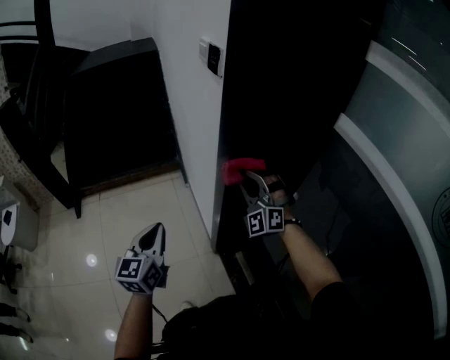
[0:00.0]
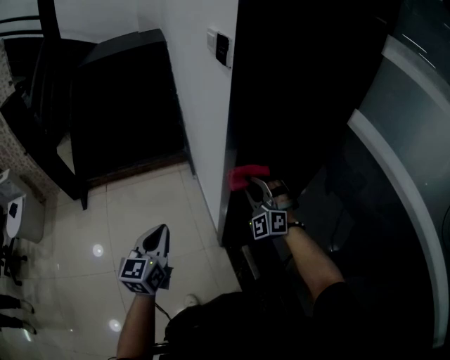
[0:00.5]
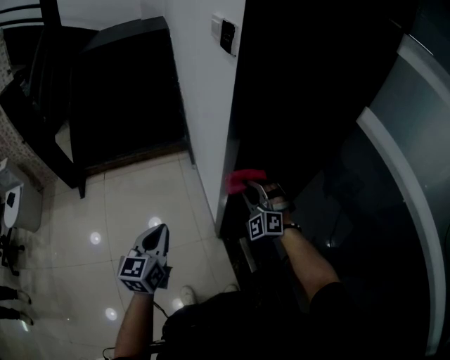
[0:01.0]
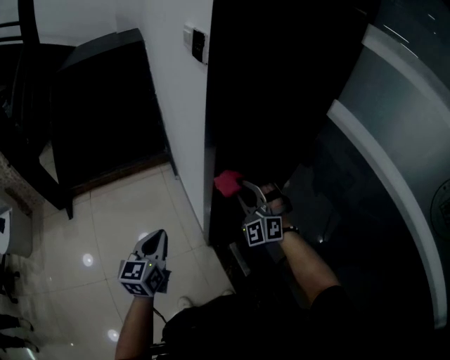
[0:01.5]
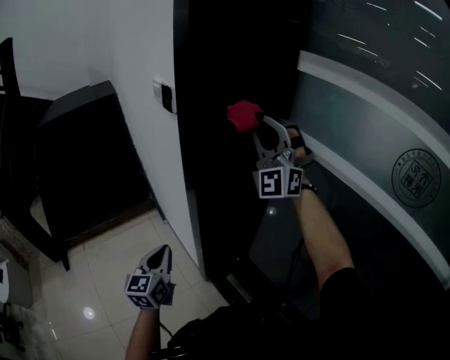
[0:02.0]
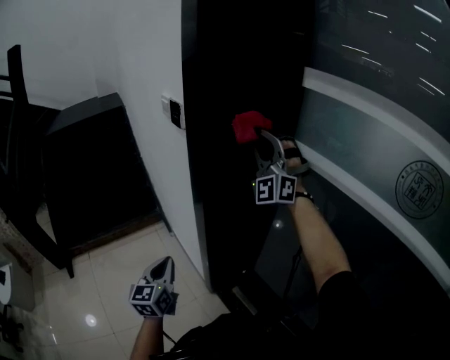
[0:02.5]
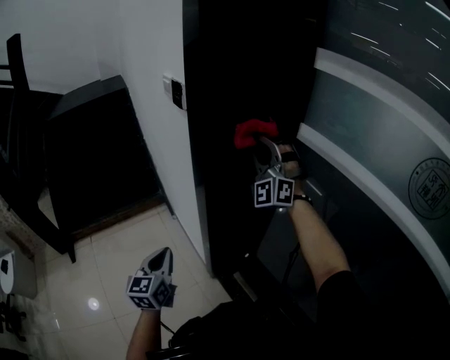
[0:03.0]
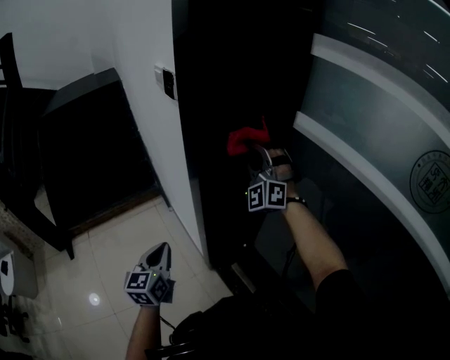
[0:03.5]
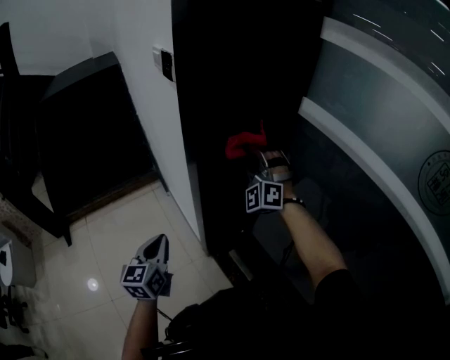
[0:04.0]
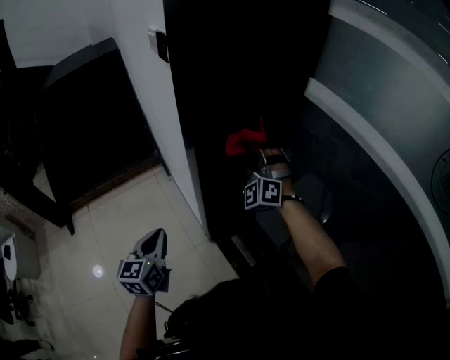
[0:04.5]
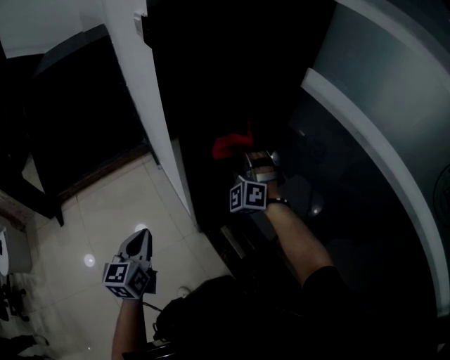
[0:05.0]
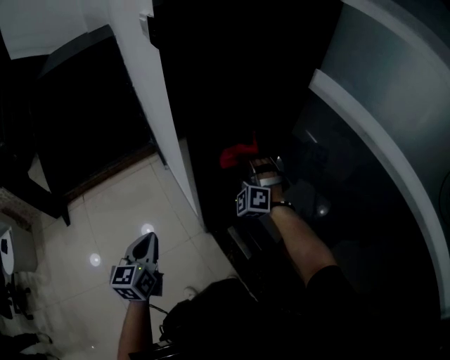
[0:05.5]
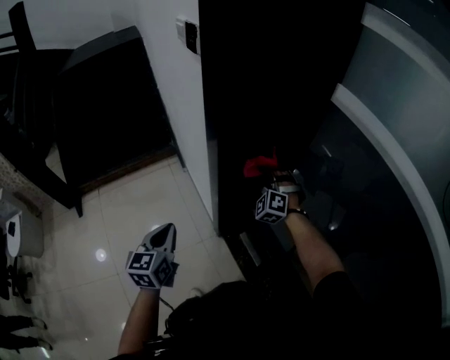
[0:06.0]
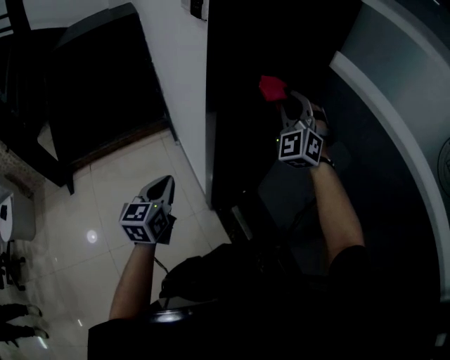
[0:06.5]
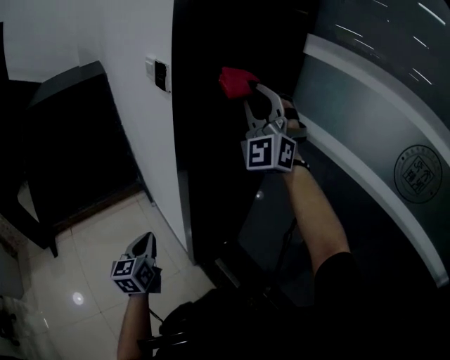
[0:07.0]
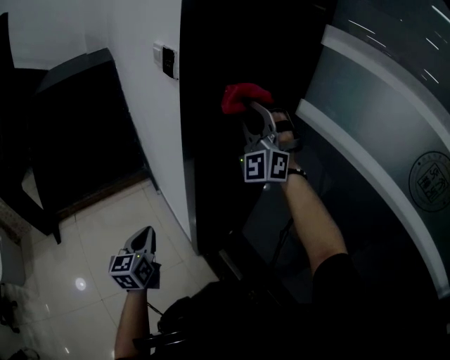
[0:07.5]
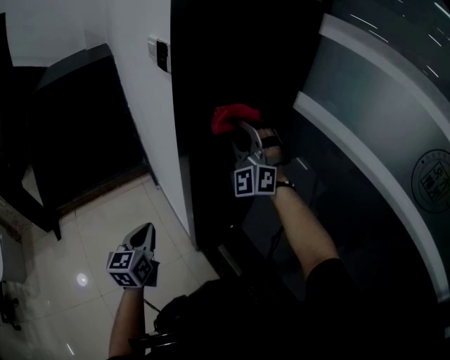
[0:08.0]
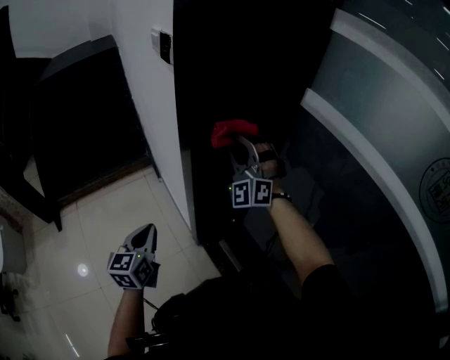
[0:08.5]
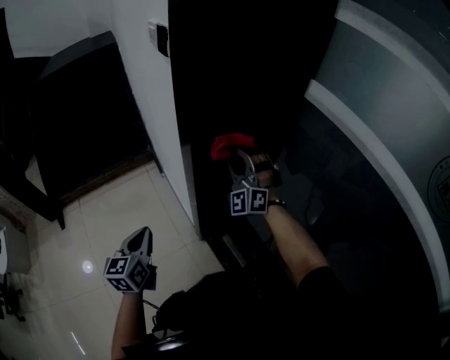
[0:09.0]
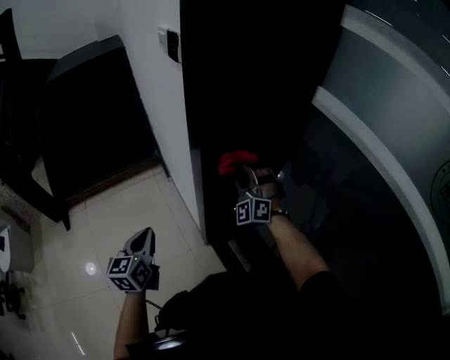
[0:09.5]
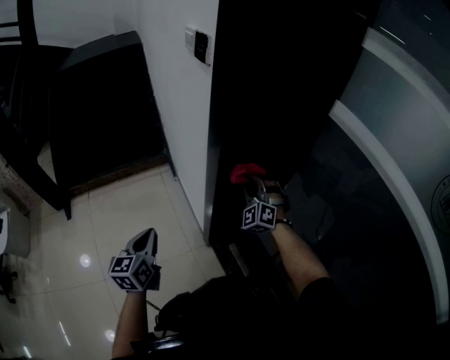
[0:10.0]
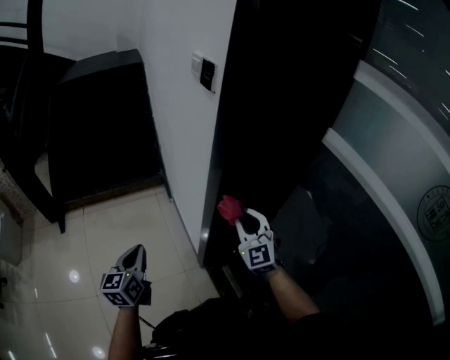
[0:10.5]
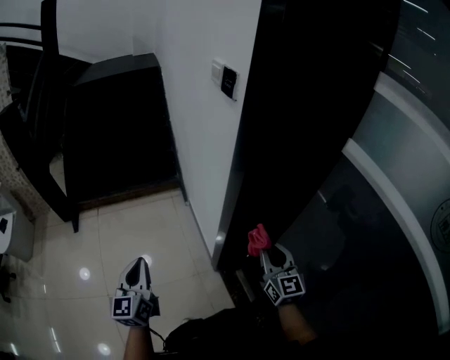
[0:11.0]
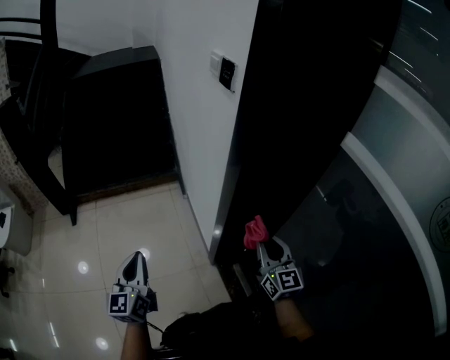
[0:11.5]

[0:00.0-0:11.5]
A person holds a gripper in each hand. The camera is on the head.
0.0 to 2.0 s: The left gripper goes some 5 cm to the right, while the right gripper is displaced upward by about 30 cm, and changes its angle by roughly 30 degrees.
2.0 to 4.0 s: The right gripper heads downward, covering about 20 cm, and rotates approximately 30 degrees.
4.0 to 6.0 s: The right gripper is displaced downward by approximately 20 cm, and rotates approximately 20 degrees.
6.0 to 7.5 s: The right gripper moves upward, approximately 35 cm, and tilts its fingers some 40 degrees upward.
7.5 to 9.5 s: The right gripper shifts roughly 25 cm downward, and swivels about 20 degrees.
9.5 to 11.5 s: The right gripper is displaced backward by about 15 cm, and twists approximately 70 degrees clockwise, seen from behind. Meanwhile the left gripper is displaced to the left and backward by approximately 15 cm, and rotates roughly 20 degrees.

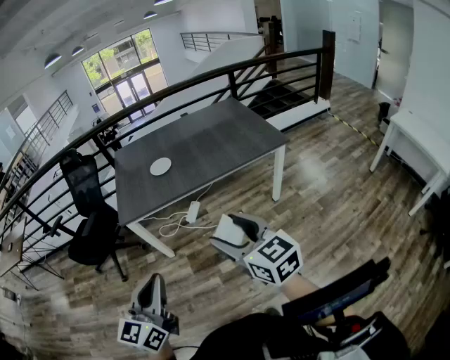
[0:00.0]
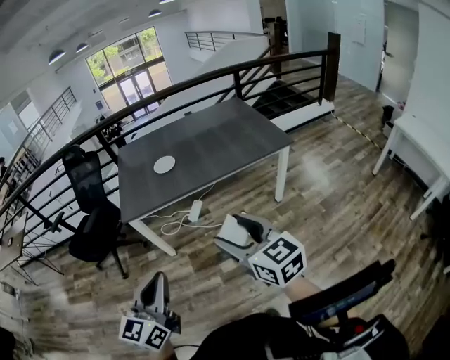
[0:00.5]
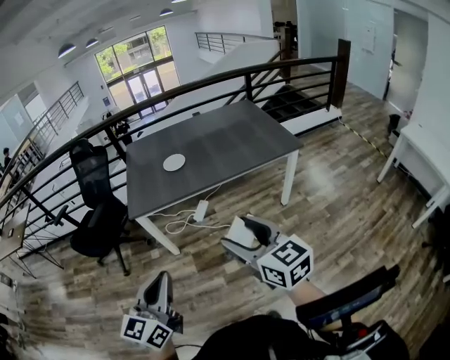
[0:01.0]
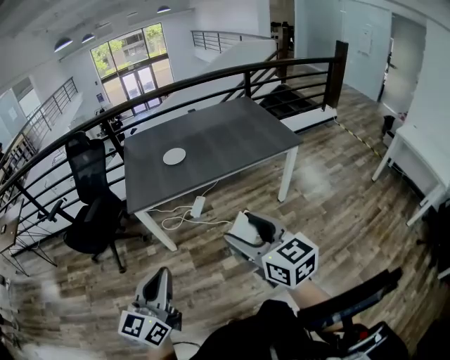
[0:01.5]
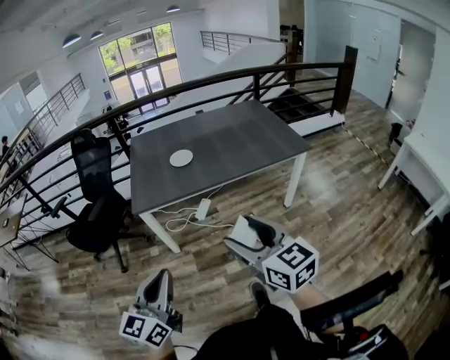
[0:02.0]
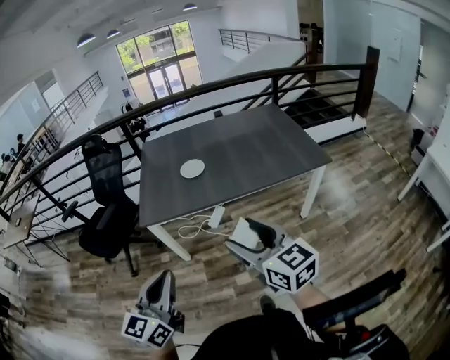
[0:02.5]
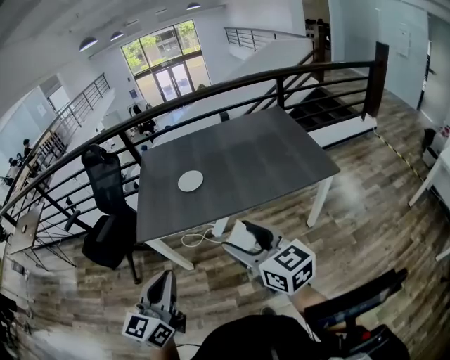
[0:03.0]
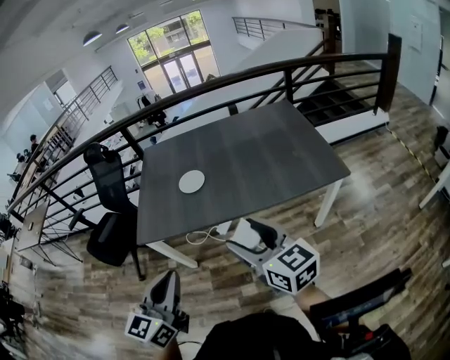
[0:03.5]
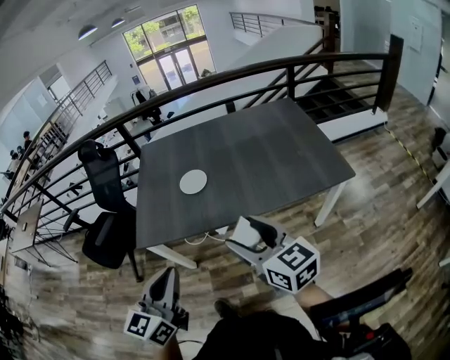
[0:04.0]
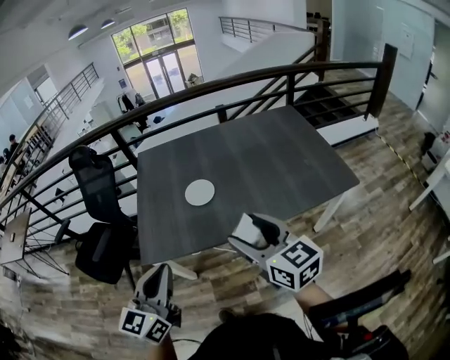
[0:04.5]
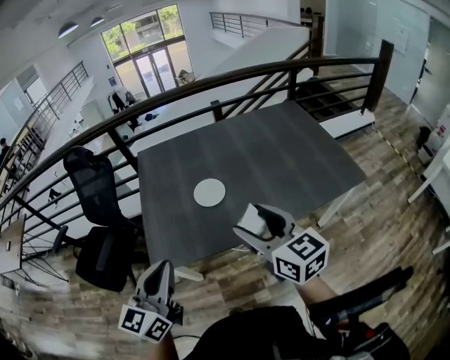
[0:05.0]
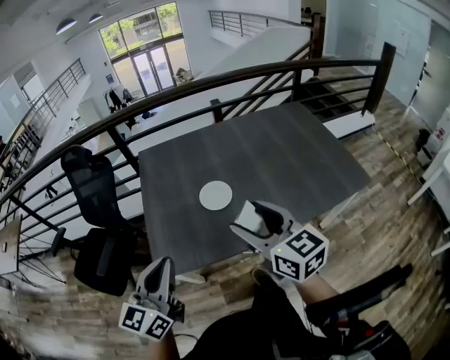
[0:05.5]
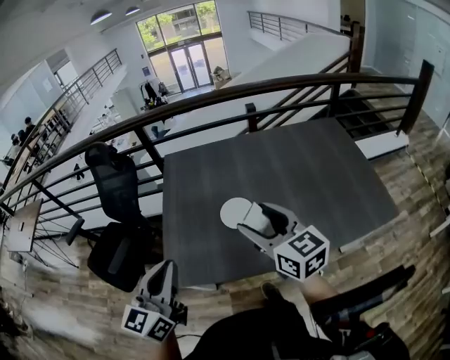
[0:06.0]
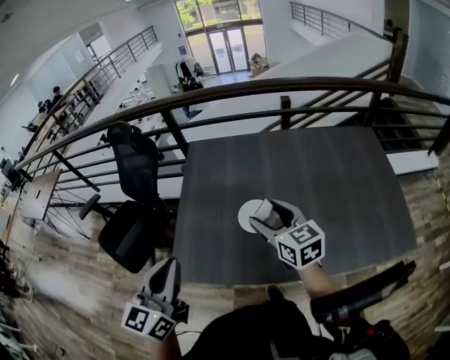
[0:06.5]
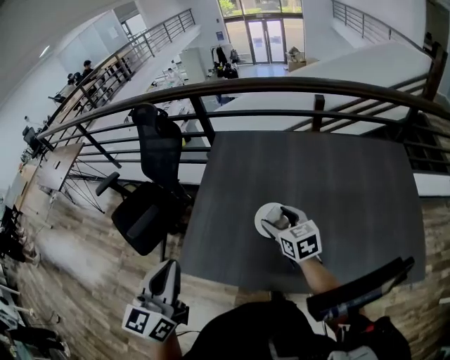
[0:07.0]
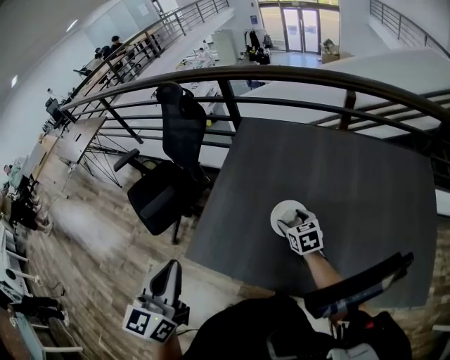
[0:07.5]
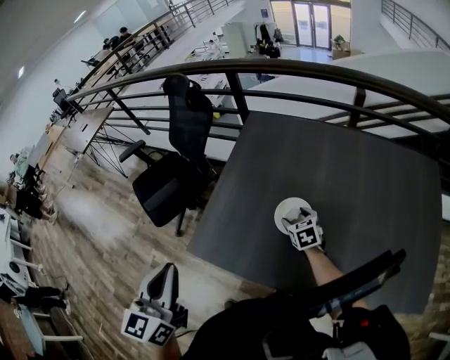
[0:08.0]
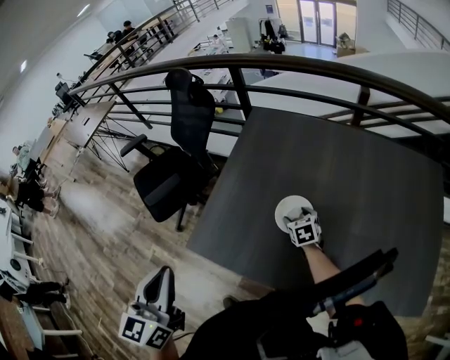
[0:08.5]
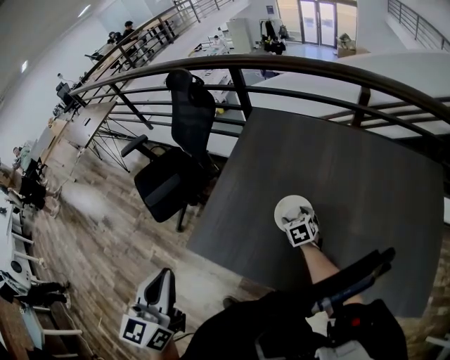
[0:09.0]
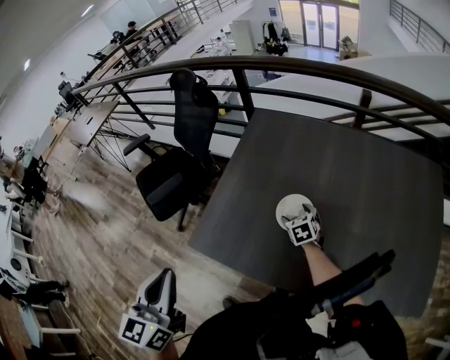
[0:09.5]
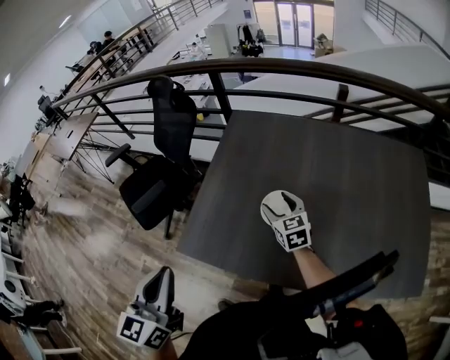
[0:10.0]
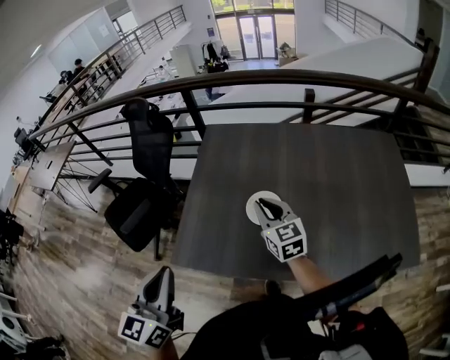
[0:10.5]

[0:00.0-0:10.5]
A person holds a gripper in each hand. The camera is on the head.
0.0 to 2.0 s: The grippers both shift to the left by roughly 10 cm.
2.0 to 4.0 s: The left gripper goes roughly 35 cm forward and to the right. The right gripper travels forward by approximately 30 cm.
4.0 to 6.5 s: The left gripper travels forward and to the left by some 35 cm, while the right gripper moves forward, about 40 cm.
6.5 to 8.5 s: The right gripper goes approximately 25 cm downward, and tilts its fingers approximately 30 degrees downward; the left gripper shifts some 5 cm backward, and turns by some 30 degrees.
8.5 to 10.5 s: The right gripper goes about 20 cm upward, tips its fingers upward by some 30 degrees, and closes up.

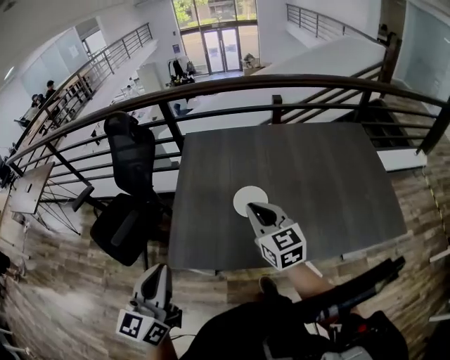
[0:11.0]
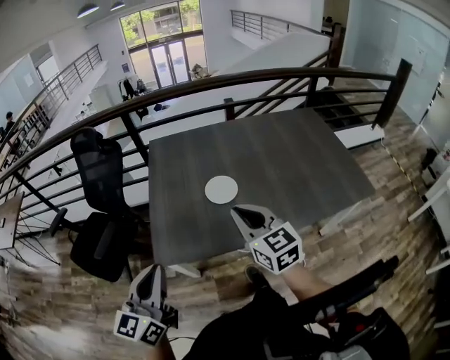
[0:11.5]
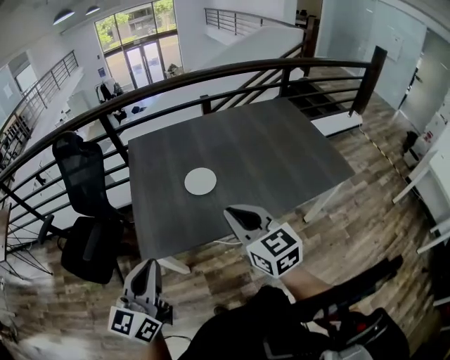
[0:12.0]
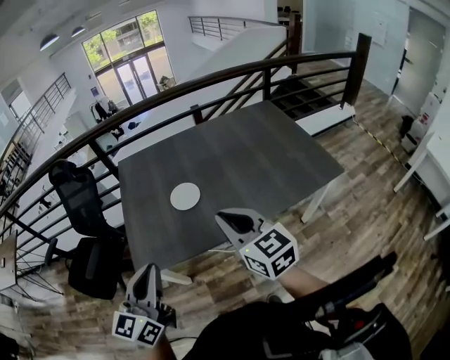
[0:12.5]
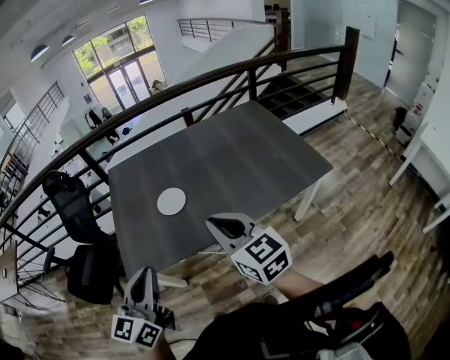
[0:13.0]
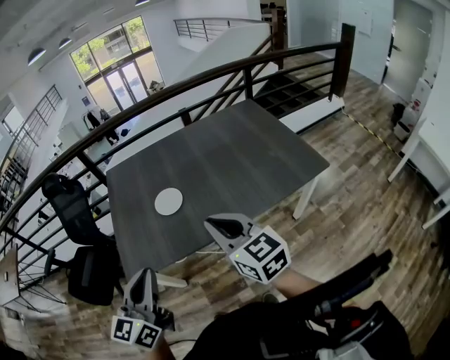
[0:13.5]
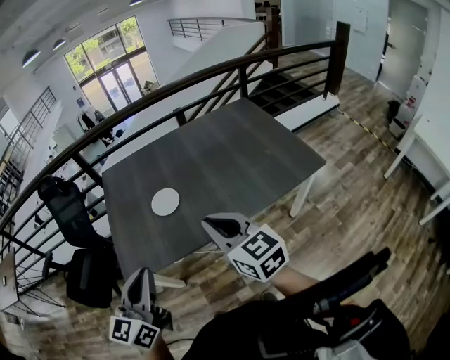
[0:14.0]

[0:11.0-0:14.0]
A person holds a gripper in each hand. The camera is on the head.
11.0 to 12.5 s: The left gripper goes some 15 cm to the right and backward, and swivels some 20 degrees. Meanwhile the right gripper goes approximately 25 cm backward and to the right.
12.5 to 14.0 s: Both grippers travel together to the right, approximately 5 cm.

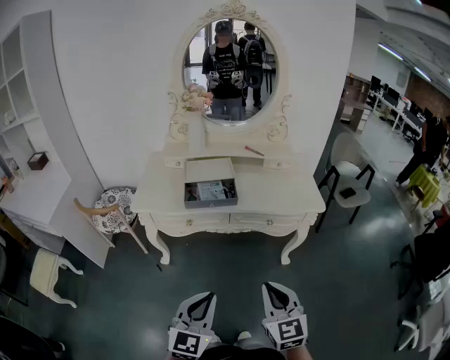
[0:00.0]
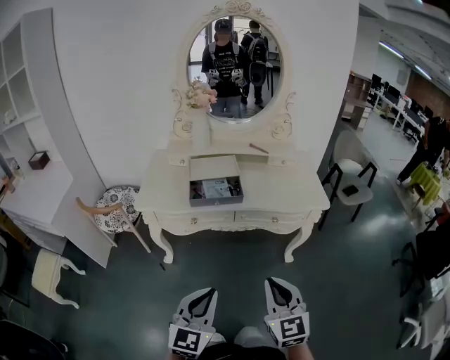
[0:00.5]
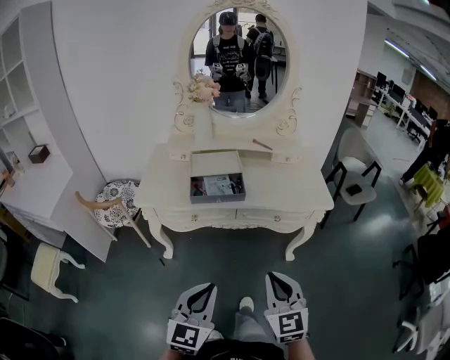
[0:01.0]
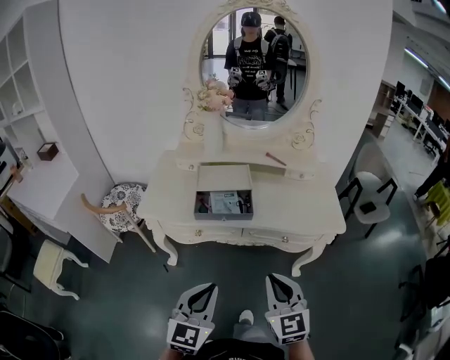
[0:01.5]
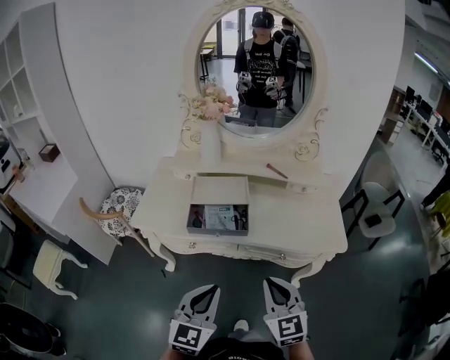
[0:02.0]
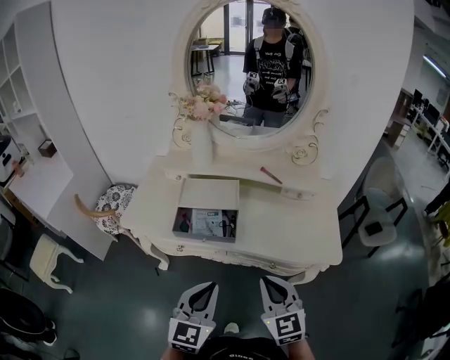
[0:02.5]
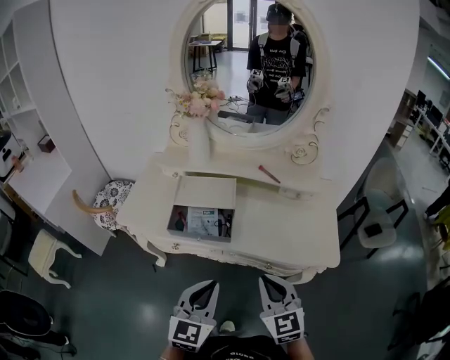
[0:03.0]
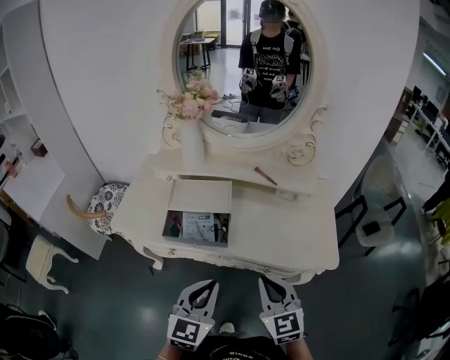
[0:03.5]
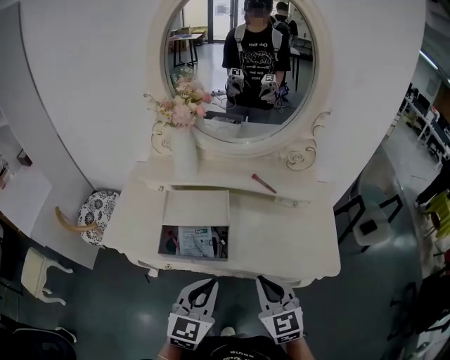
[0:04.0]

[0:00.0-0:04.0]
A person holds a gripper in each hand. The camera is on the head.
0.0 to 2.0 s: Both grippers travel together forward, roughly 20 cm.
2.0 to 4.0 s: The right gripper goes about 15 cm forward, while the left gripper is displaced forward and to the right by approximately 15 cm.
